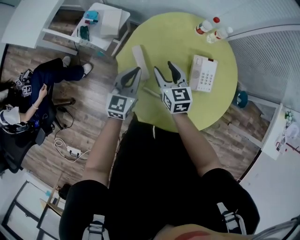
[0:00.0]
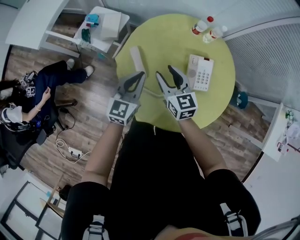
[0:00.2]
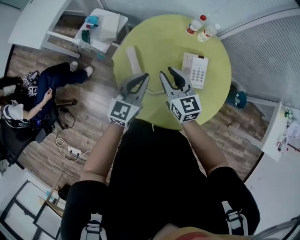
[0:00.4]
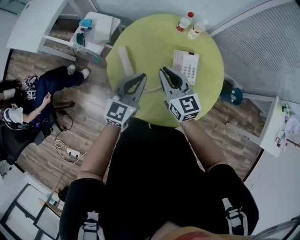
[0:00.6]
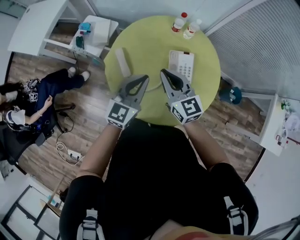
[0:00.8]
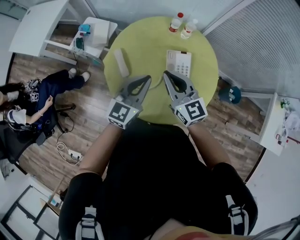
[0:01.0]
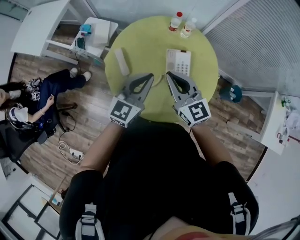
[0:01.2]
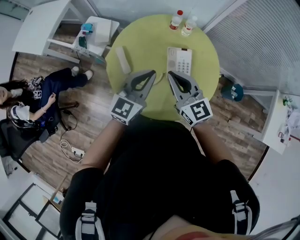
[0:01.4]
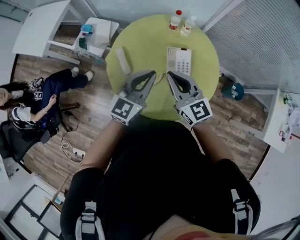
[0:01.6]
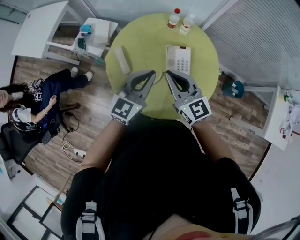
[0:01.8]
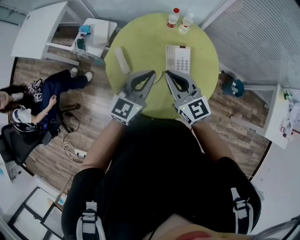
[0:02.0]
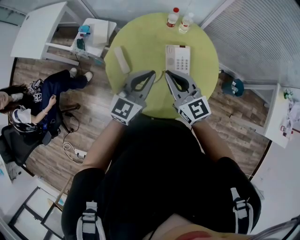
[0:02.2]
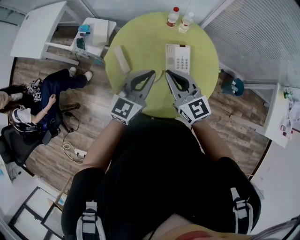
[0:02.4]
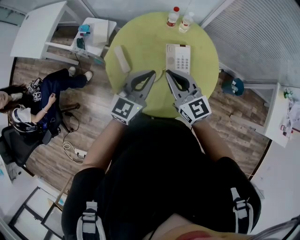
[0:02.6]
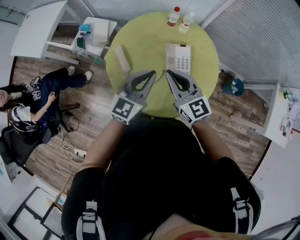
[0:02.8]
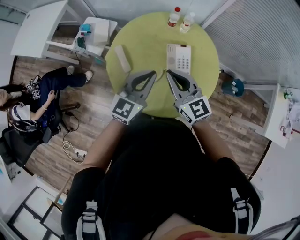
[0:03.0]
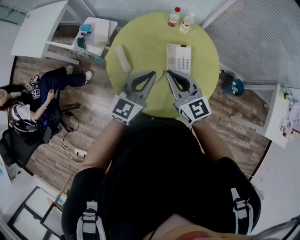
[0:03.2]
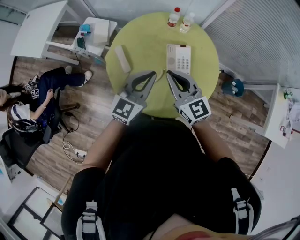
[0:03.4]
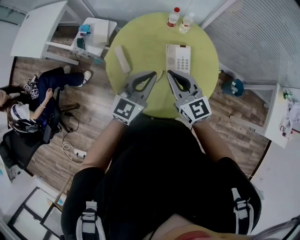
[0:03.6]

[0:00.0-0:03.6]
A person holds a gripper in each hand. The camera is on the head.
0.0 to 1.8 s: The left gripper moves to the right, upward and backward, about 30 cm. Meanwhile the right gripper goes approximately 30 cm upward, to the right and backward, rotates roughly 20 degrees, and closes.
1.8 to 3.6 s: Both grippers stay about where they are.

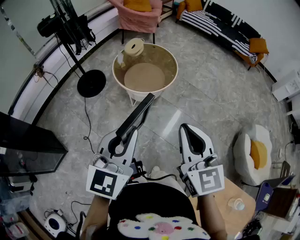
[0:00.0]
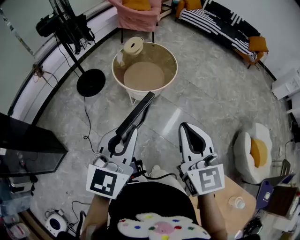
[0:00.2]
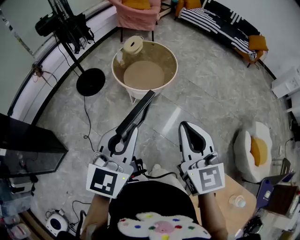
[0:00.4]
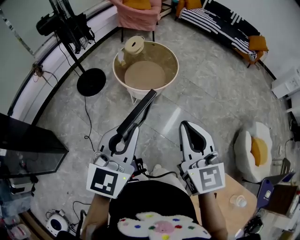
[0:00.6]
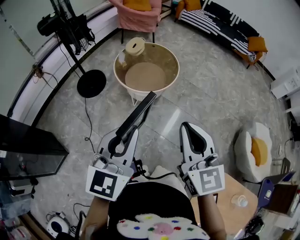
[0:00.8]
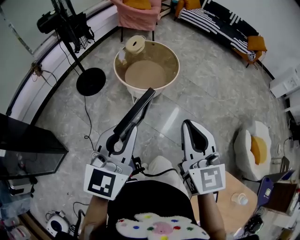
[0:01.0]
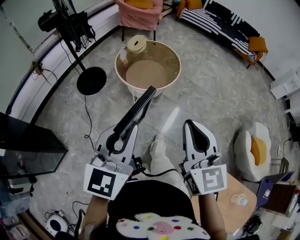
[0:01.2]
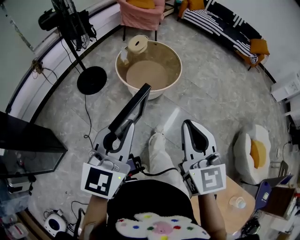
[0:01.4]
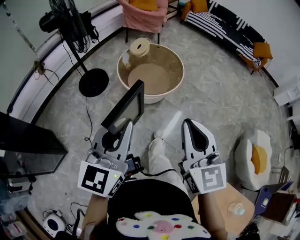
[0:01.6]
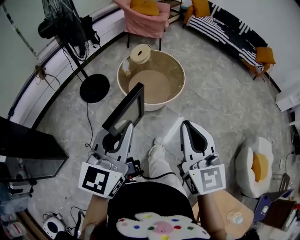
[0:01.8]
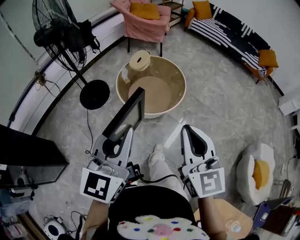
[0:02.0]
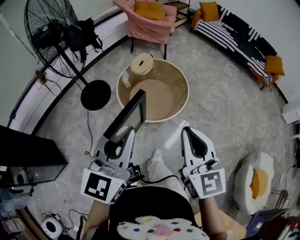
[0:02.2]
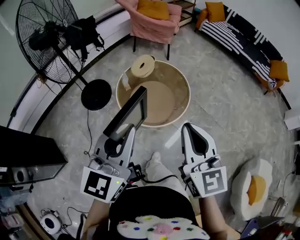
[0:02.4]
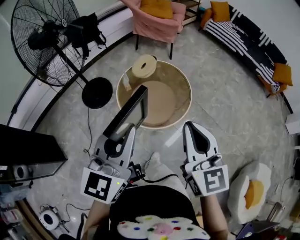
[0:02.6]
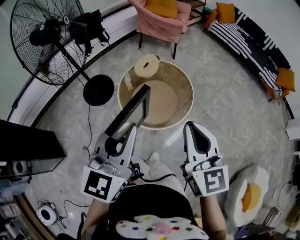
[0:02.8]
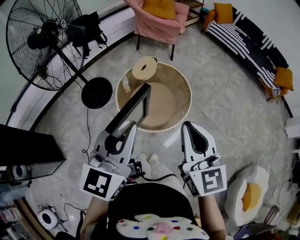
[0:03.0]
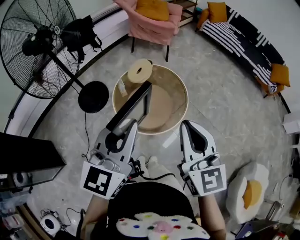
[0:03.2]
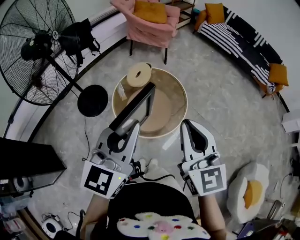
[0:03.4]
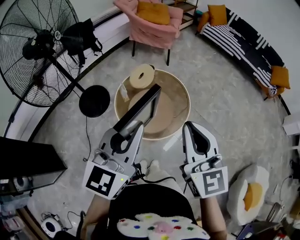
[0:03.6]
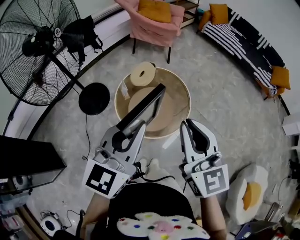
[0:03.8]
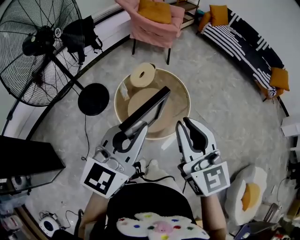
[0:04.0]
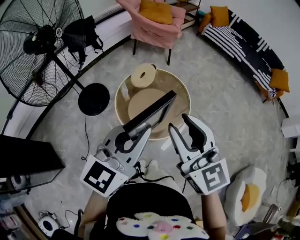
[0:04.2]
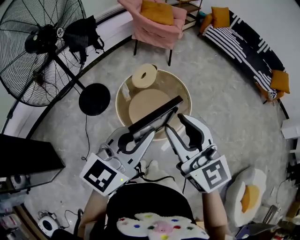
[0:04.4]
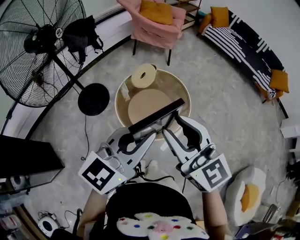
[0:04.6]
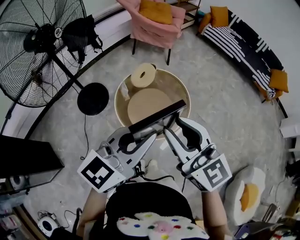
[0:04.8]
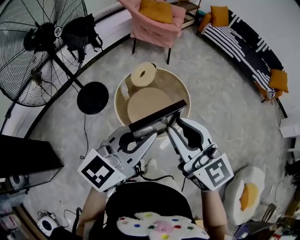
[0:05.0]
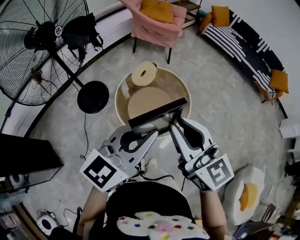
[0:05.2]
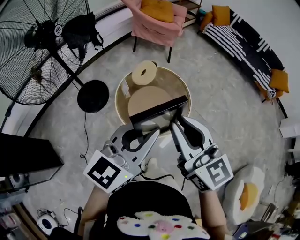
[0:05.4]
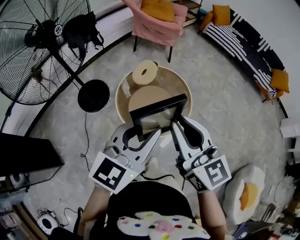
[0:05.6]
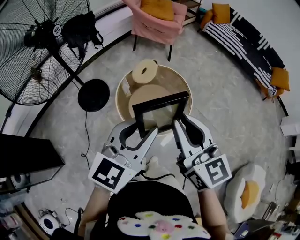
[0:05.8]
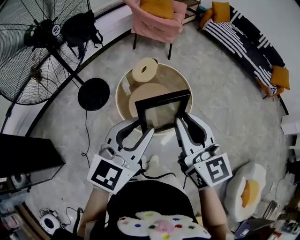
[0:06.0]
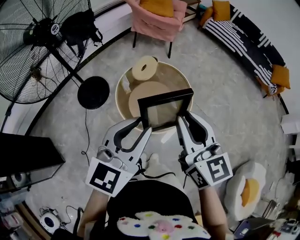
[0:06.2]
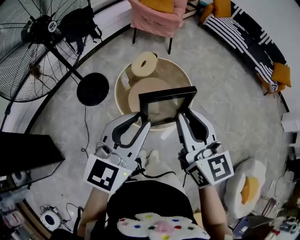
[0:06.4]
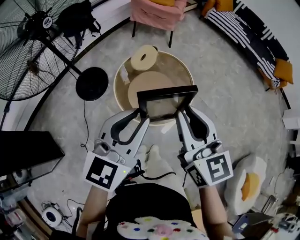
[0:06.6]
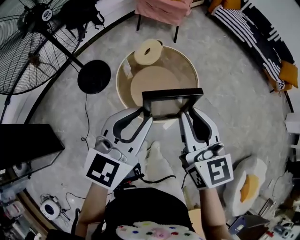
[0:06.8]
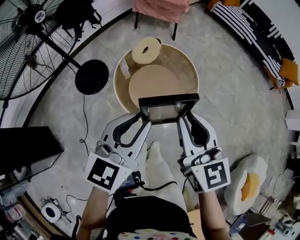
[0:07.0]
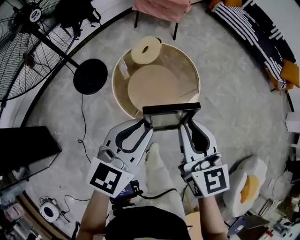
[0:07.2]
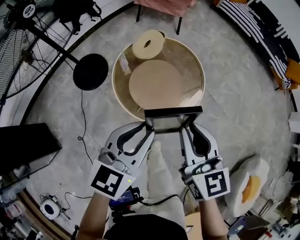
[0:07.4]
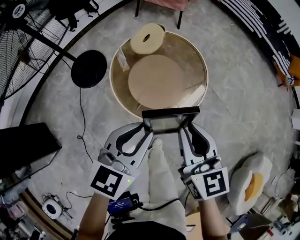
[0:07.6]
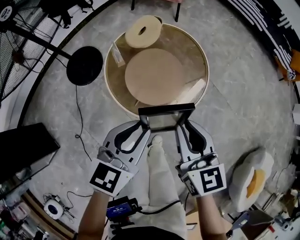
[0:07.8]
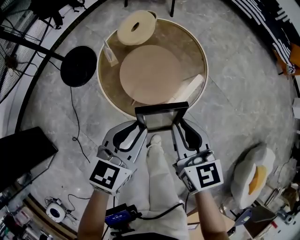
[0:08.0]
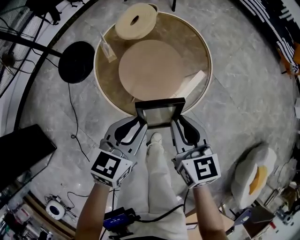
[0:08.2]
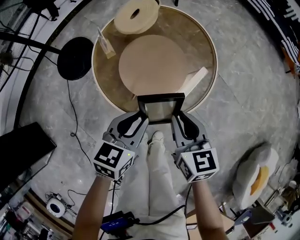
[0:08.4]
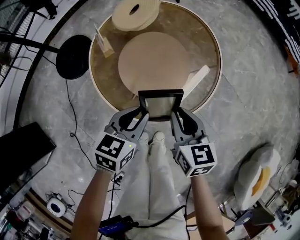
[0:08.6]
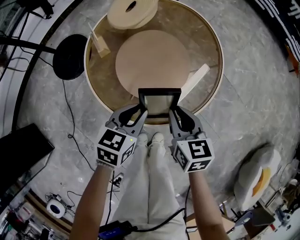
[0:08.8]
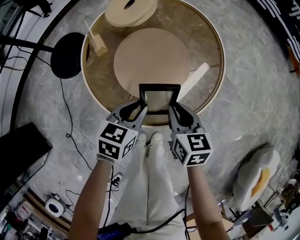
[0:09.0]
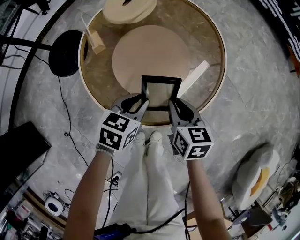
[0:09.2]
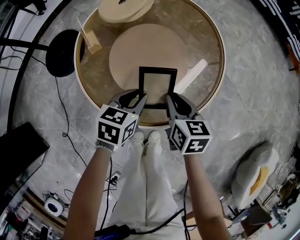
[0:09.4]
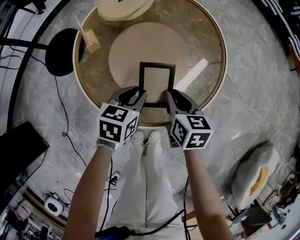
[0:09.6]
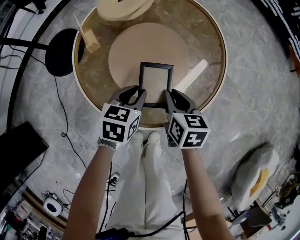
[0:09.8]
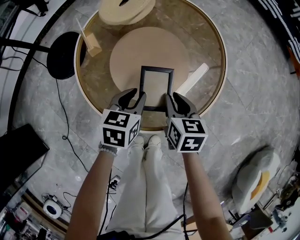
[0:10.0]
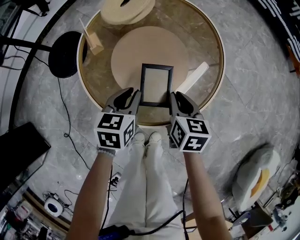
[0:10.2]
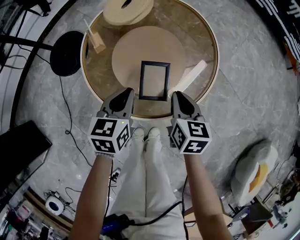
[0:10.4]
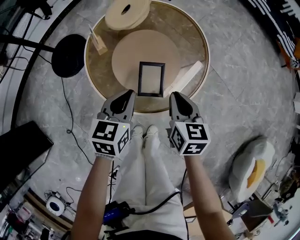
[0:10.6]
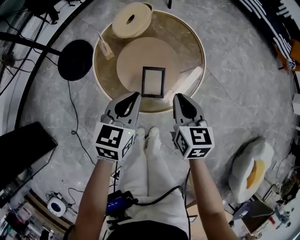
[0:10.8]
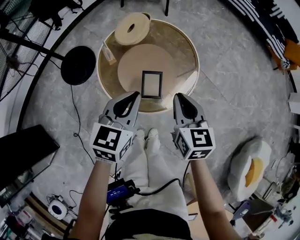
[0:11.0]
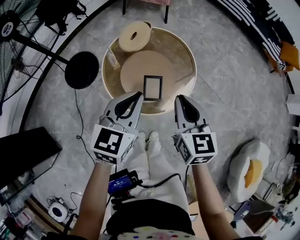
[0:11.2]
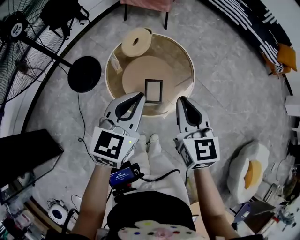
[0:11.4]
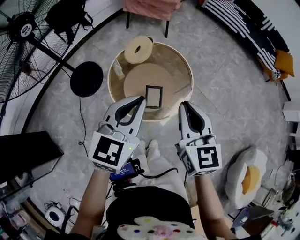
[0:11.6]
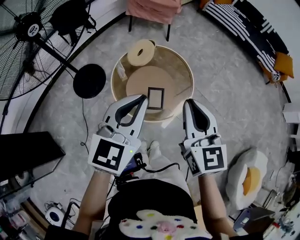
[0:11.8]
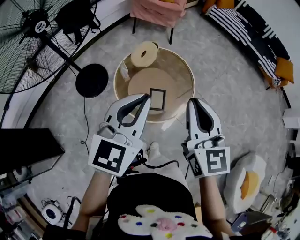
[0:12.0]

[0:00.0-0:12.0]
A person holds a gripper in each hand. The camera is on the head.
0.0 to 1.6 s: The right gripper moves about 5 cm. Meanwhile the left gripper moves to the left, roughly 5 cm.
1.6 to 3.0 s: The grippers both shift forward by roughly 30 cm.
3.0 to 4.4 s: The right gripper shifts about 5 cm to the left, and opens. Meanwhile the left gripper changes its angle by approximately 20 degrees.
4.4 to 6.0 s: The left gripper opens its fingers.
6.0 to 7.6 s: Both grippers move downward, about 15 cm.
7.6 to 9.0 s: Both grippers move downward, about 30 cm. The left gripper changes its angle by approximately 20 degrees; the right gripper turns by about 20 degrees.
9.0 to 10.4 s: The left gripper shifts by roughly 5 cm.
10.4 to 12.0 s: Both grippers travel together upward, approximately 40 cm. The right gripper tips its fingers upward by about 30 degrees, while the left gripper turns by roughly 40 degrees.

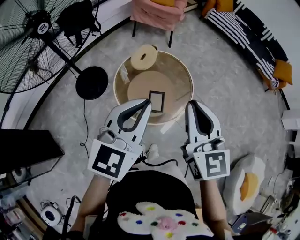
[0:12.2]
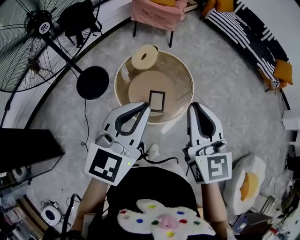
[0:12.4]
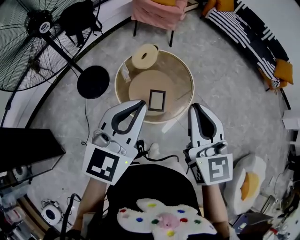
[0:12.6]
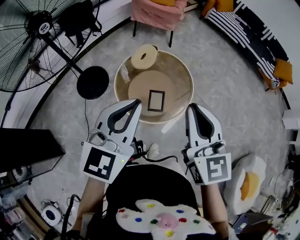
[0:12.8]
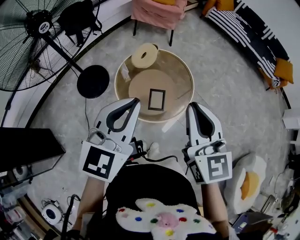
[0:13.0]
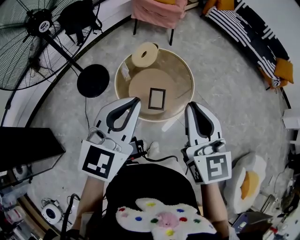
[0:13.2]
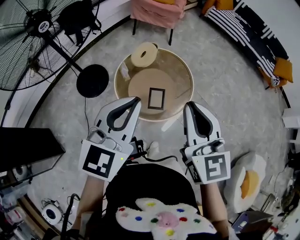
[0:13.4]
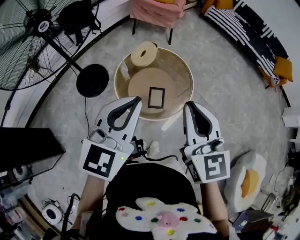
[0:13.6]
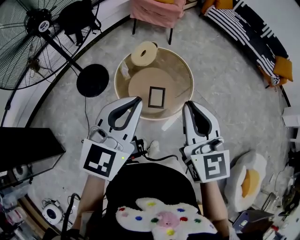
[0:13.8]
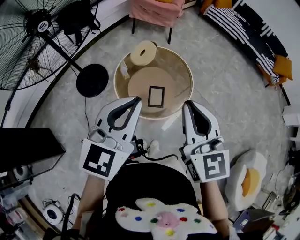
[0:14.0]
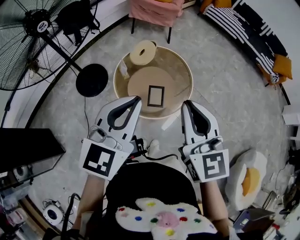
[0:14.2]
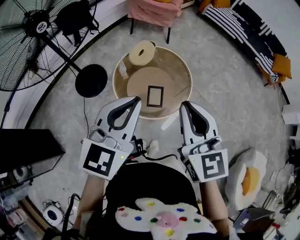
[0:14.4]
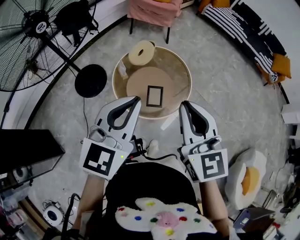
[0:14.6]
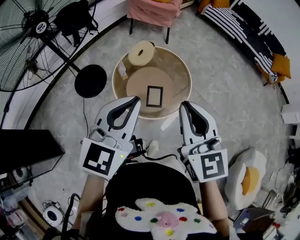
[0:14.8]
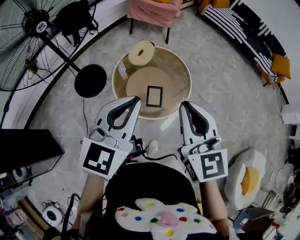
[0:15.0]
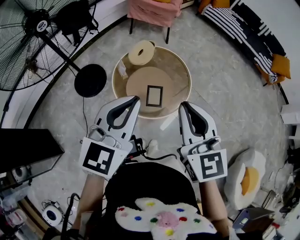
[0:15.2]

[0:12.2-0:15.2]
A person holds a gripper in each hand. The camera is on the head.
12.2 to 13.8 s: The grippers stay close to where they were, moving slightly.
13.8 to 15.2 s: Neither gripper changes place.

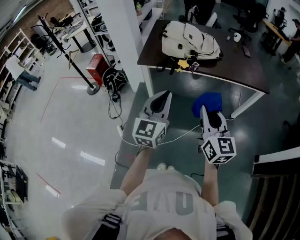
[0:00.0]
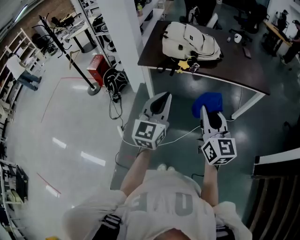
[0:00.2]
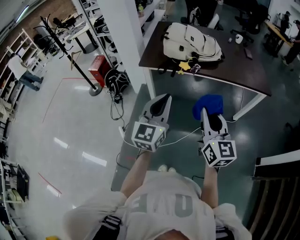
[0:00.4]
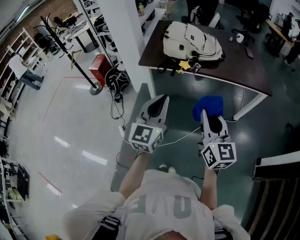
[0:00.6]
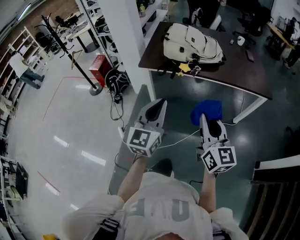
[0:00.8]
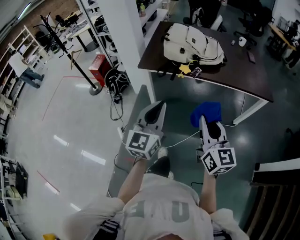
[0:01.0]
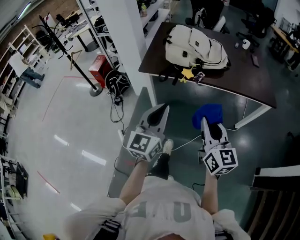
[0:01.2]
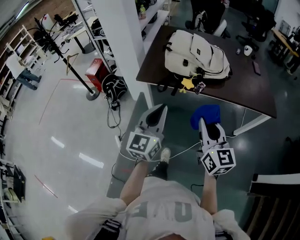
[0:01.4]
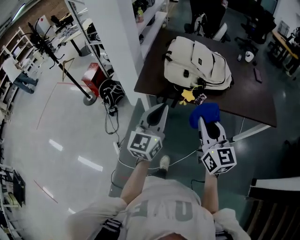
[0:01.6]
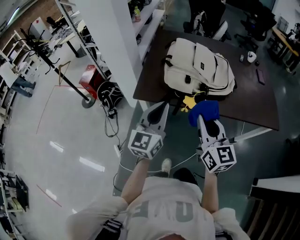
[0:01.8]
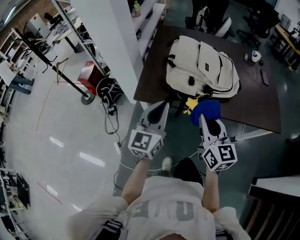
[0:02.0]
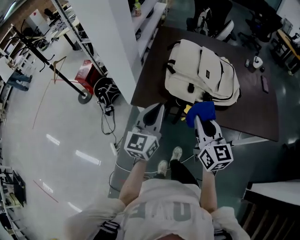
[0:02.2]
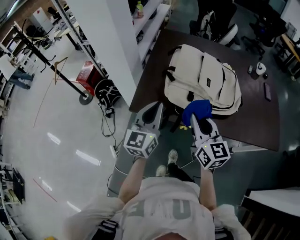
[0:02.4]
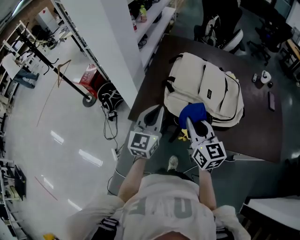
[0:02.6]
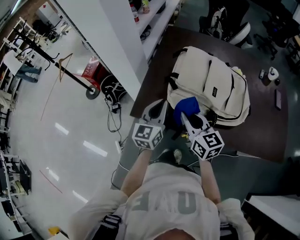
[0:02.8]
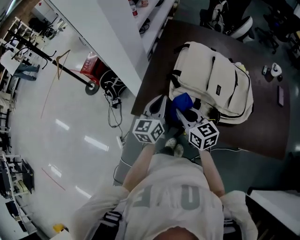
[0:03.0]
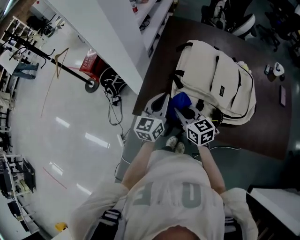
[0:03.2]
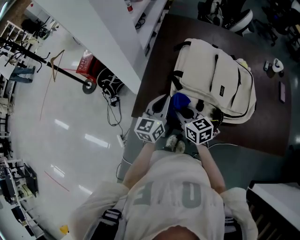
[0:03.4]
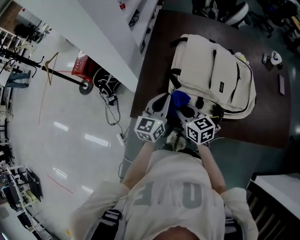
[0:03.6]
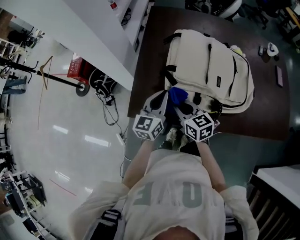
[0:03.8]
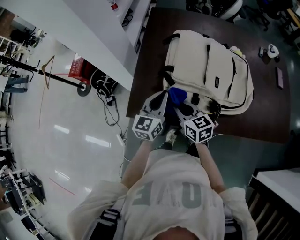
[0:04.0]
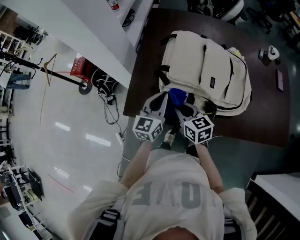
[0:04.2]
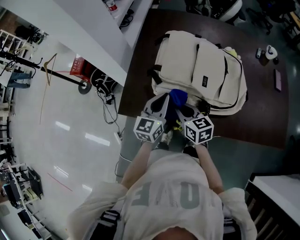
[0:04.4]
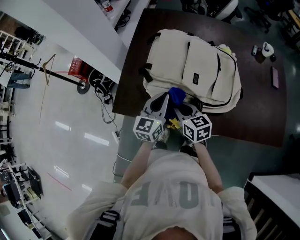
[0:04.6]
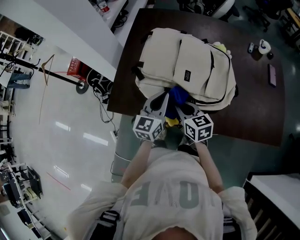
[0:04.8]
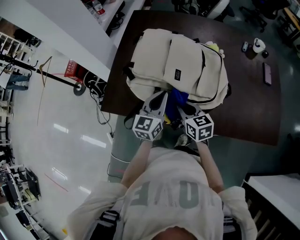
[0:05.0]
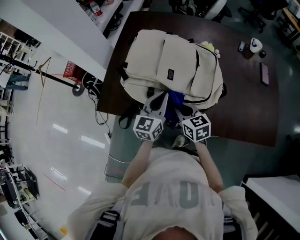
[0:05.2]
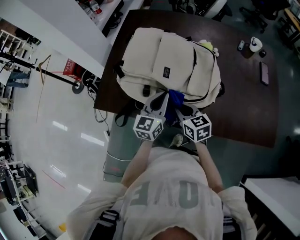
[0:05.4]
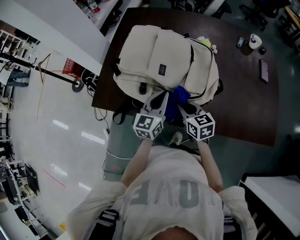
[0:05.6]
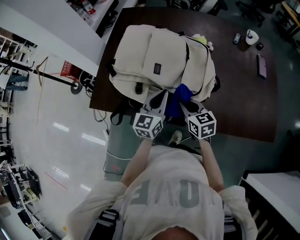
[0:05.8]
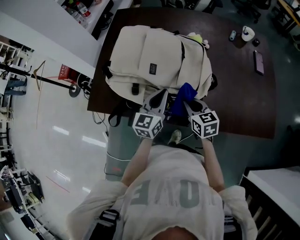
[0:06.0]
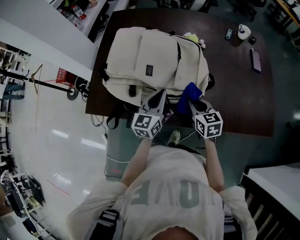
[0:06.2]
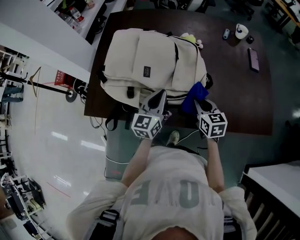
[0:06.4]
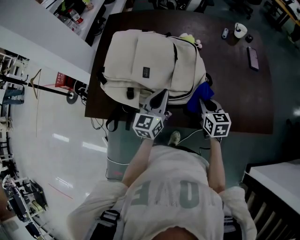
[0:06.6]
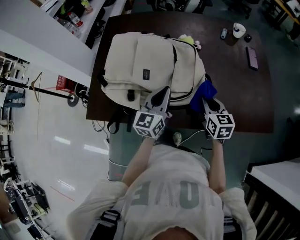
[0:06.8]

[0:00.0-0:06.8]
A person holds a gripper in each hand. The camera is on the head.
0.0 to 1.4 s: The grippers both shift forward by some 15 cm.
1.4 to 2.8 s: The grippers both shift forward by about 35 cm. The right gripper turns by about 20 degrees.
2.8 to 4.0 s: The right gripper heads downward and forward, covering some 10 cm. Meanwhile the left gripper heads downward, covering about 5 cm.
4.0 to 5.4 s: Both grippers travel together to the right, approximately 20 cm.
5.4 to 6.8 s: The left gripper heads to the right, covering approximately 5 cm. Meanwhile the right gripper moves to the right, roughly 20 cm, and swivels some 30 degrees.
